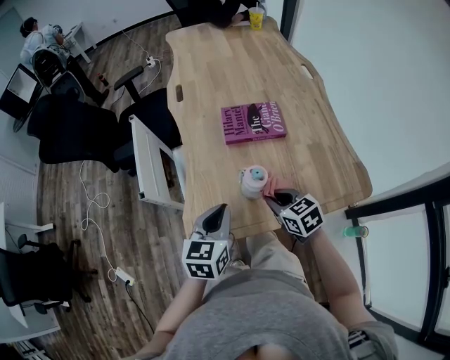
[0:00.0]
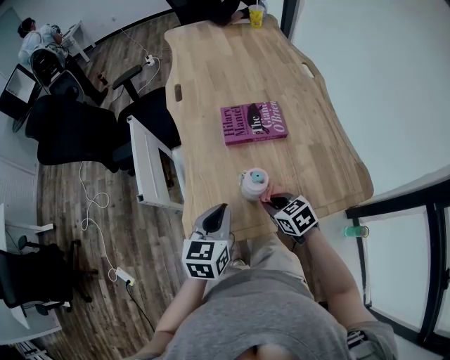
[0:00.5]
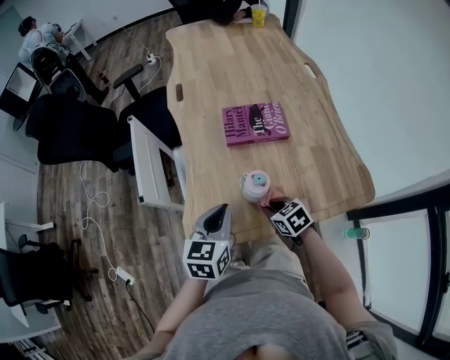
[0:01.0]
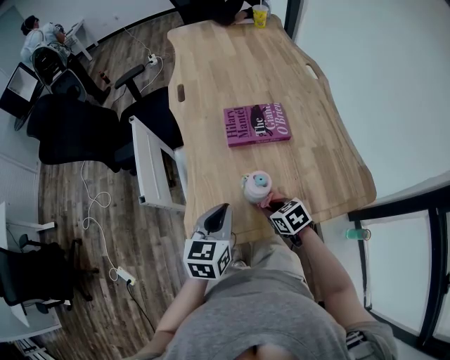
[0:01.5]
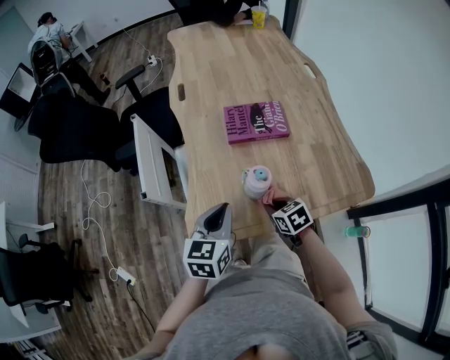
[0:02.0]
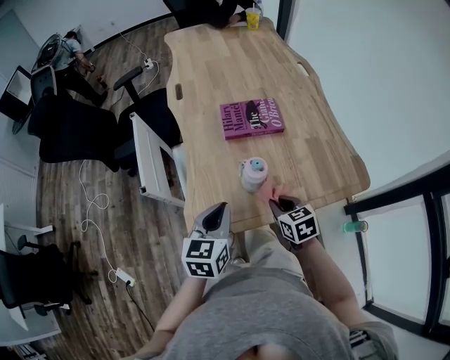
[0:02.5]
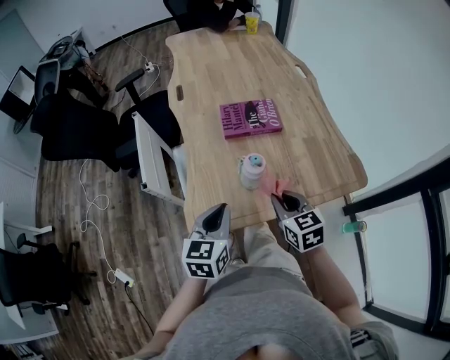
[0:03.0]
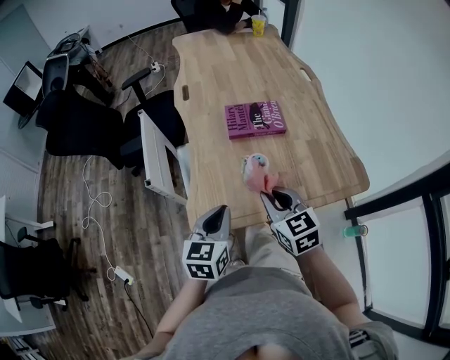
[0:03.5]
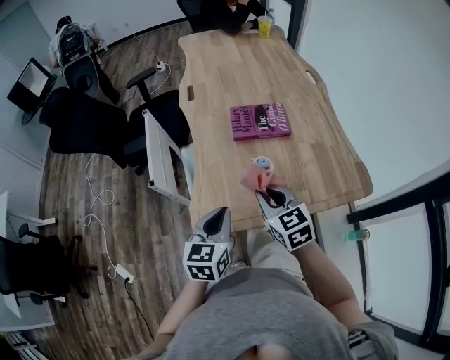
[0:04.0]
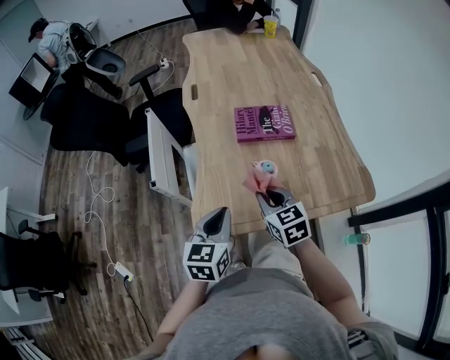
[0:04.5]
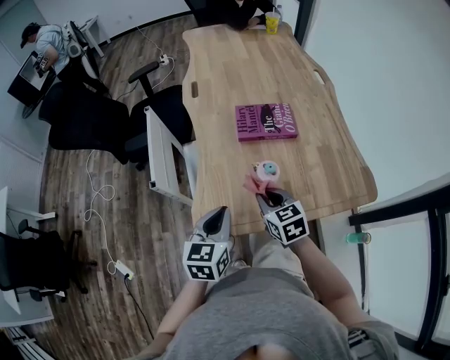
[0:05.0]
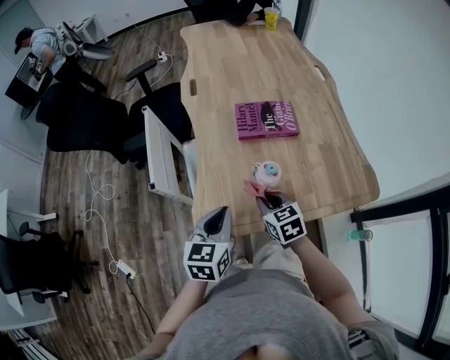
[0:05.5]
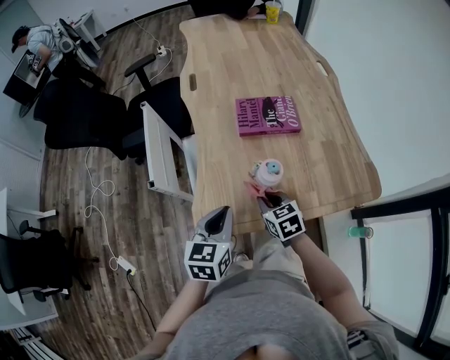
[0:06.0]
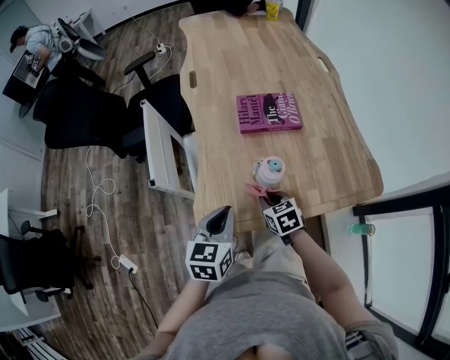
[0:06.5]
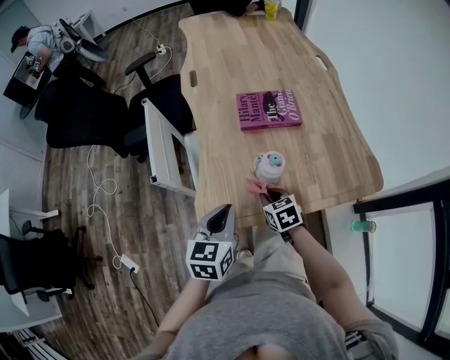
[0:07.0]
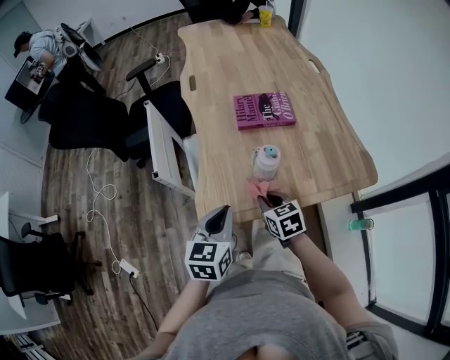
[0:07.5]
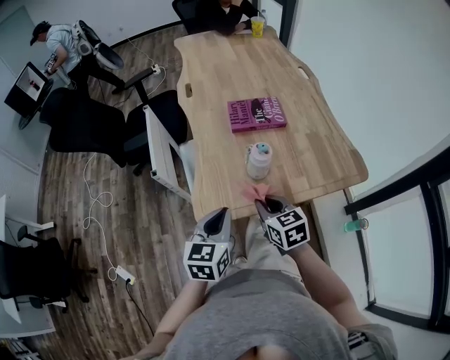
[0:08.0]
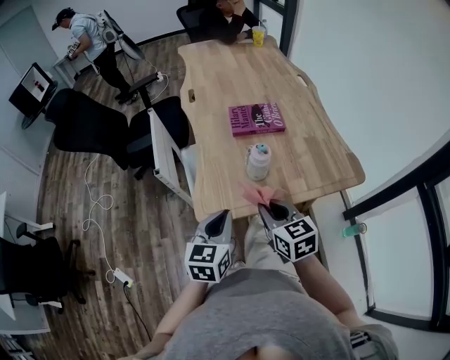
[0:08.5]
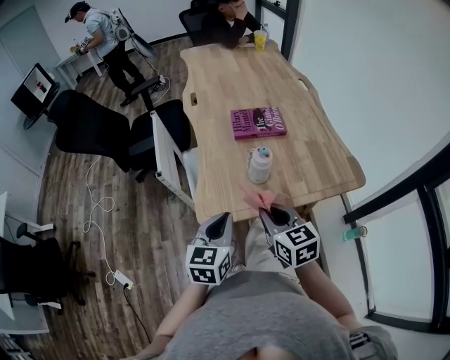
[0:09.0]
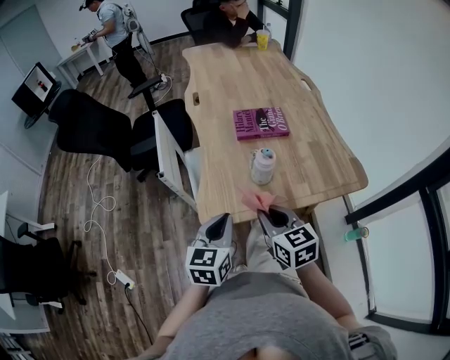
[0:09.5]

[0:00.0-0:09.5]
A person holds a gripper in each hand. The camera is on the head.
0:00.0 to 0:02.0: The right gripper goes roughly 10 cm downward.
0:02.0 to 0:04.0: The left gripper goes some 5 cm backward. Meanwhile the right gripper moves upward, roughly 15 cm, and turns by about 30 degrees.
0:04.0 to 0:05.5: The right gripper moves downward, roughly 10 cm.
0:05.5 to 0:07.5: The right gripper goes roughly 5 cm backward; the left gripper ends up roughly 5 cm from where it was.
0:07.5 to 0:09.5: The right gripper heads upward and backward, covering roughly 15 cm, while the left gripper moves about 5 cm.

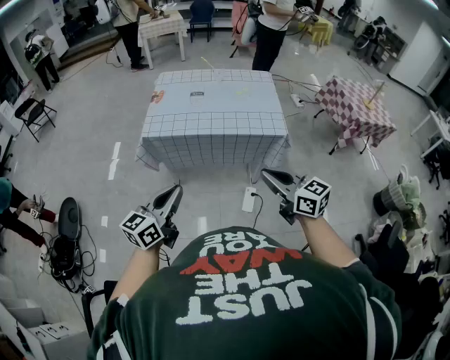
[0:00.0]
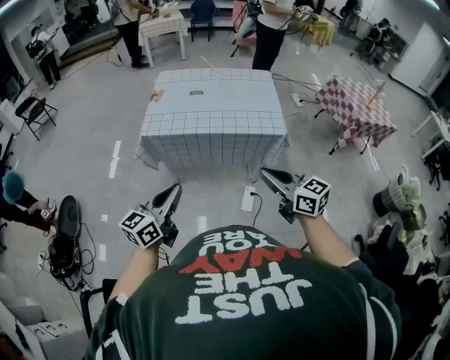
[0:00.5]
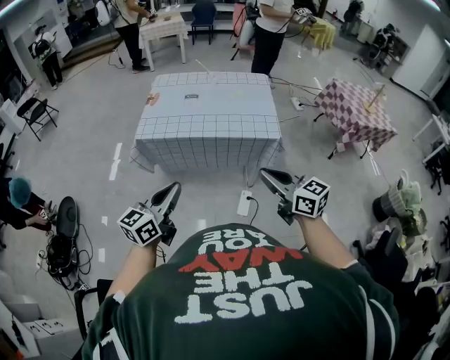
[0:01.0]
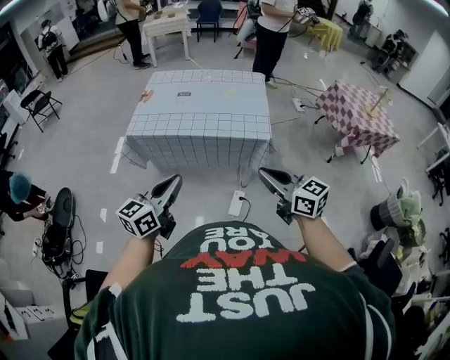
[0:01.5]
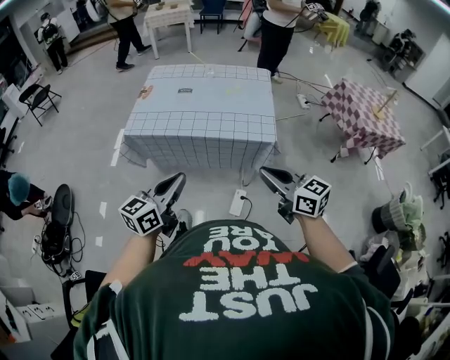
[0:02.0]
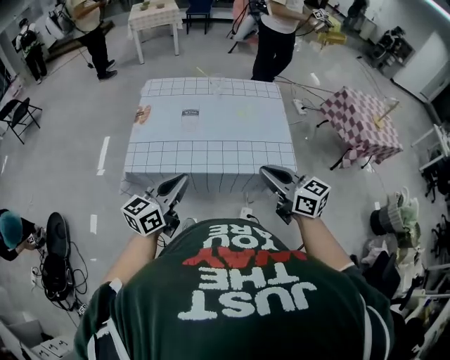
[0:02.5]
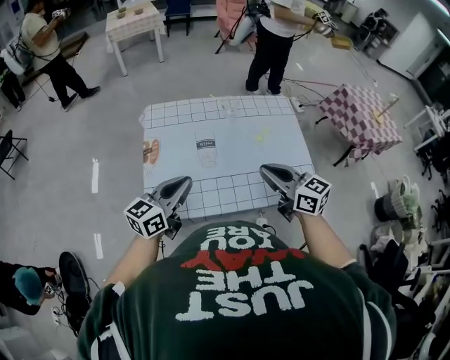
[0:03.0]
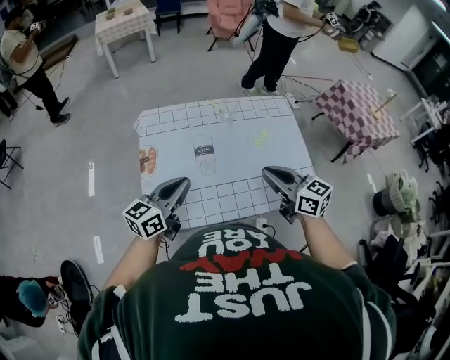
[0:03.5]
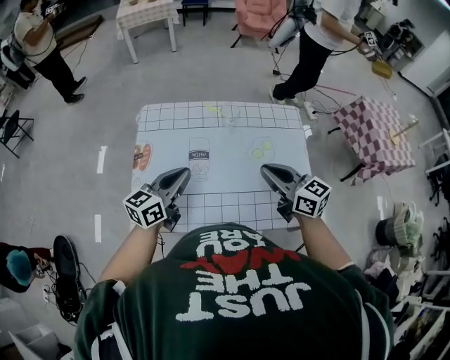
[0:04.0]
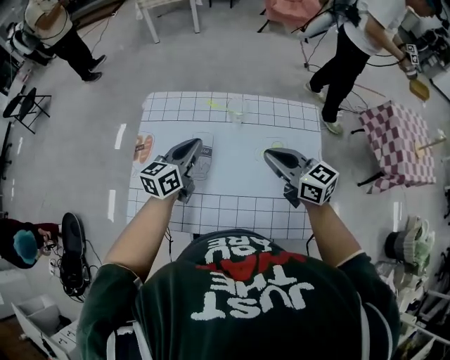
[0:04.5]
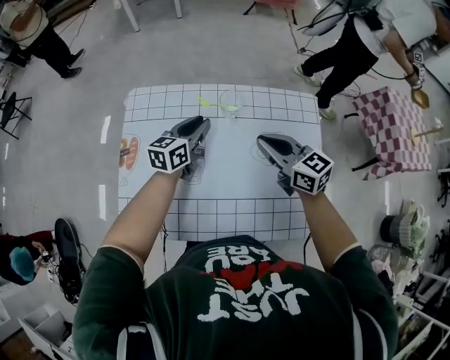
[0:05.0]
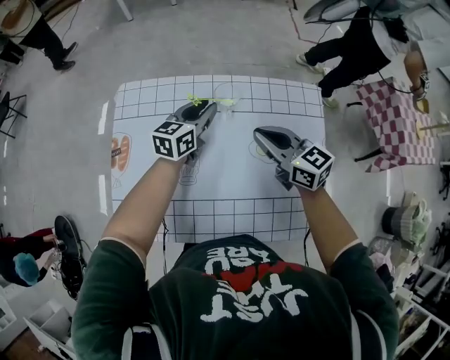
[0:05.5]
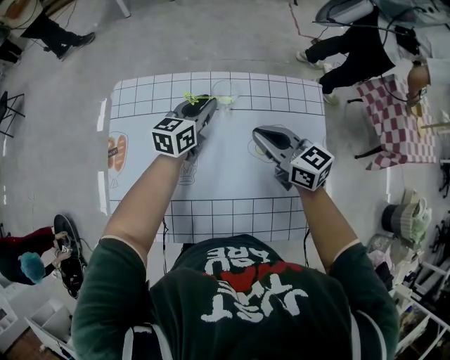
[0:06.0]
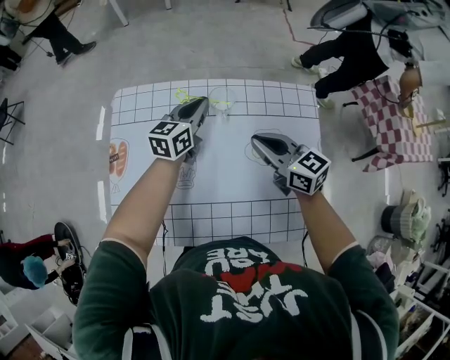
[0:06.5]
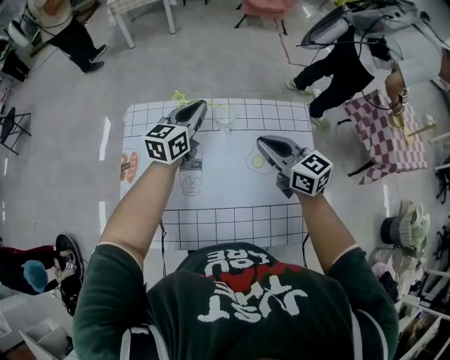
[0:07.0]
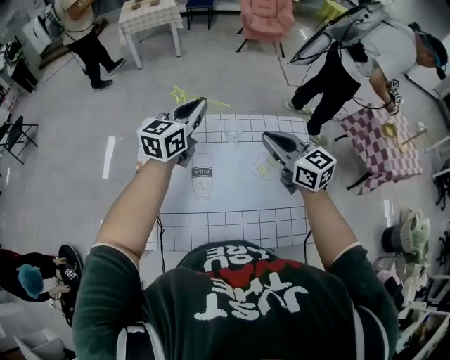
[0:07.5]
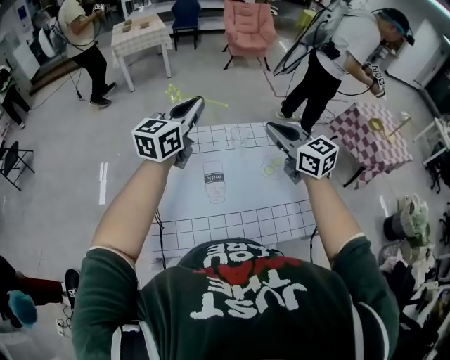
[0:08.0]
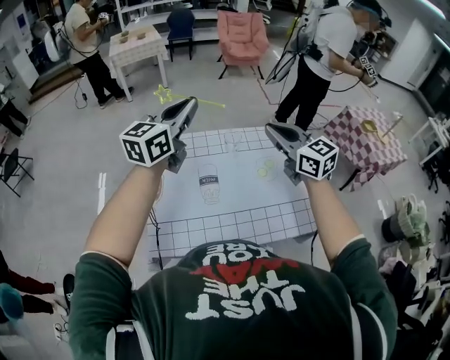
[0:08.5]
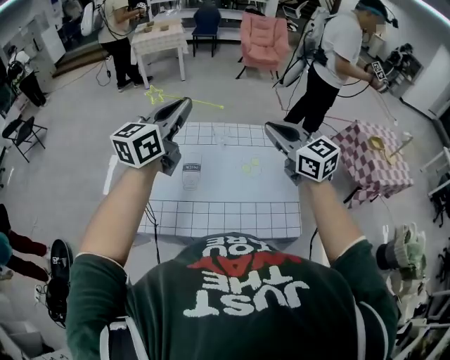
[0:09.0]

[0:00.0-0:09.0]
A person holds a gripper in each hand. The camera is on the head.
0:00.0 to 0:02.0: Both grippers travel together to the right and forward, roughly 15 cm.
0:02.0 to 0:04.5: The pair of grippers is taken forward, some 60 cm.
0:04.5 to 0:07.0: The left gripper is displaced forward and to the right by about 15 cm; the right gripper moves forward, roughly 5 cm.
0:07.0 to 0:09.0: The grippers both shift upward and backward by roughly 25 cm.

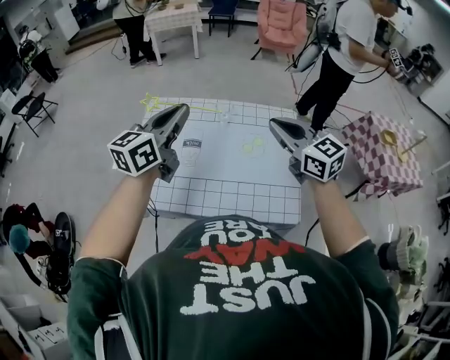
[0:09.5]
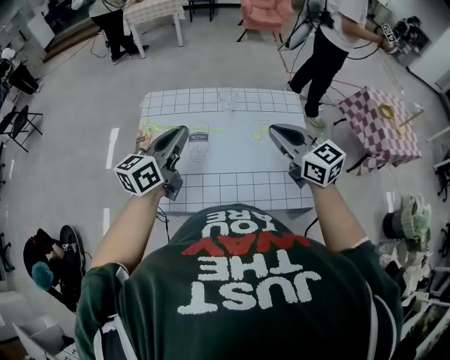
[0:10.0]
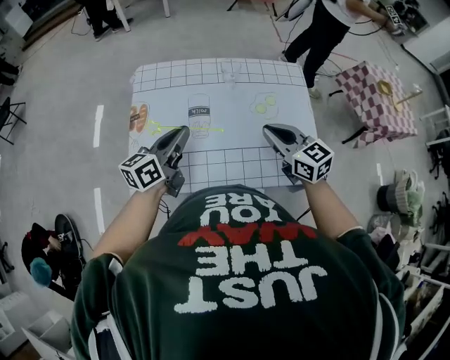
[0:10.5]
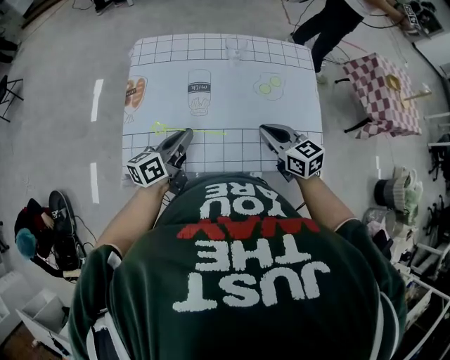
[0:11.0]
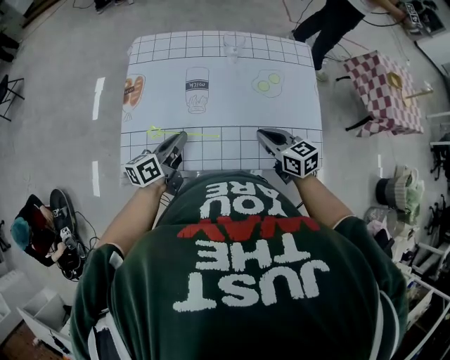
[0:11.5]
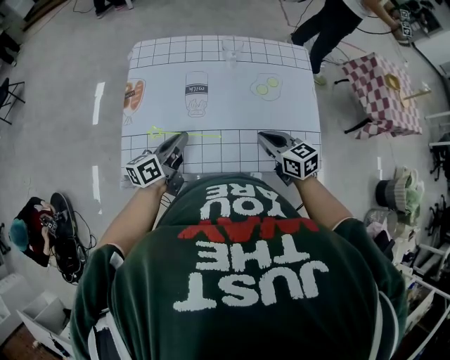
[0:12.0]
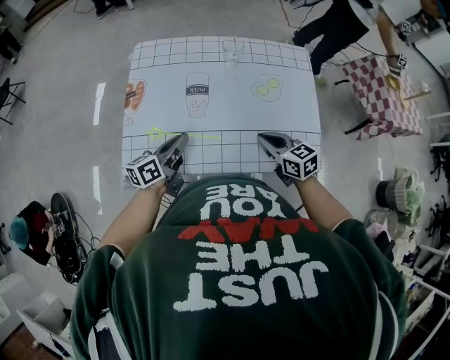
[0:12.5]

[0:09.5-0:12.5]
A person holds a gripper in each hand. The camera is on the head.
0:09.5 to 0:11.0: The grippers both shift downward by roughly 25 cm. The right gripper swivels roughly 20 degrees, while the left gripper rotates about 30 degrees.
0:11.0 to 0:12.5: The grippers stay close to where they were, moving slightly.

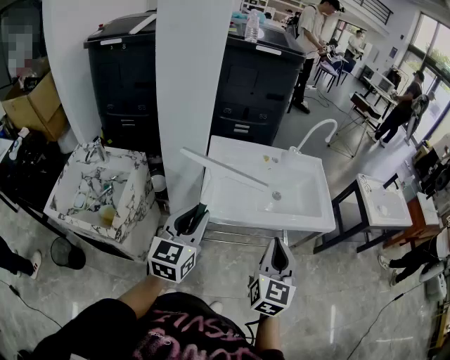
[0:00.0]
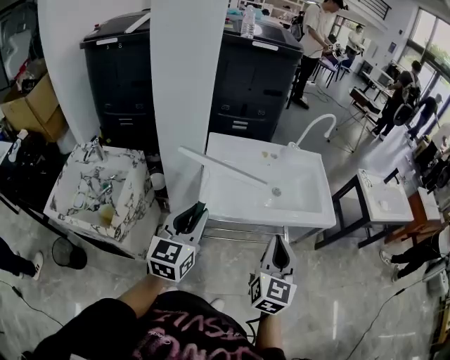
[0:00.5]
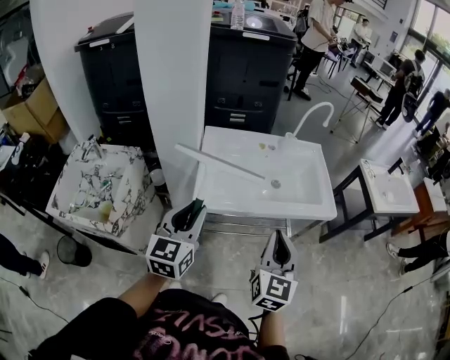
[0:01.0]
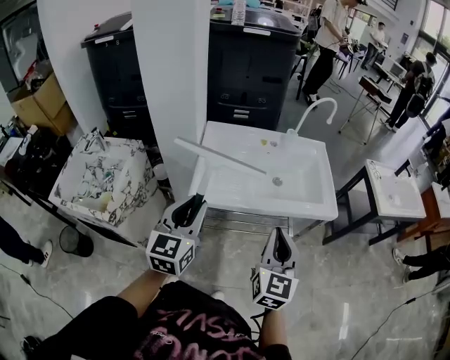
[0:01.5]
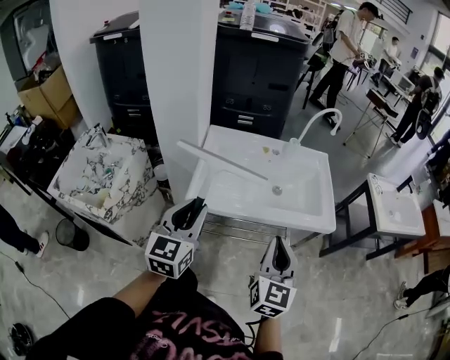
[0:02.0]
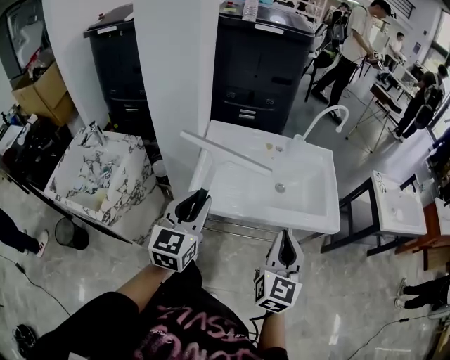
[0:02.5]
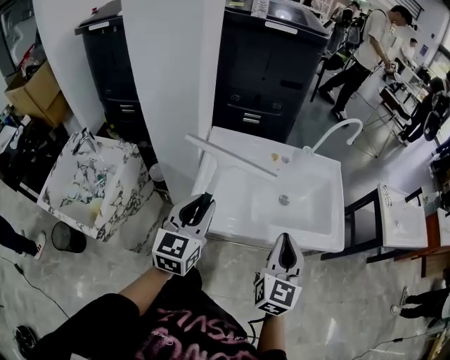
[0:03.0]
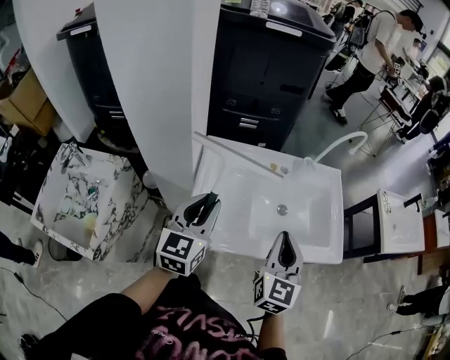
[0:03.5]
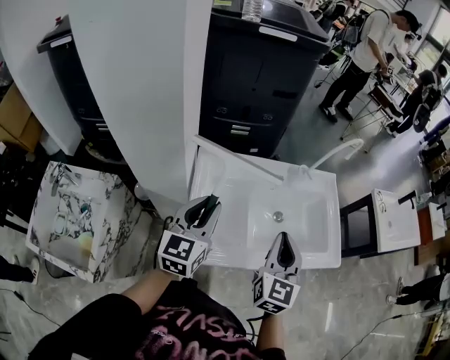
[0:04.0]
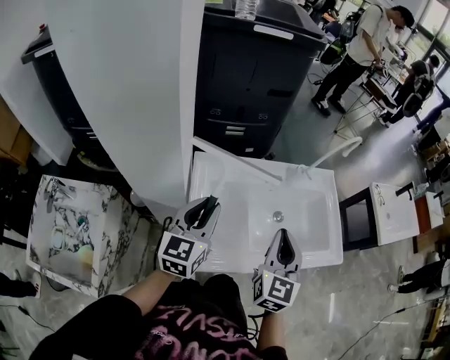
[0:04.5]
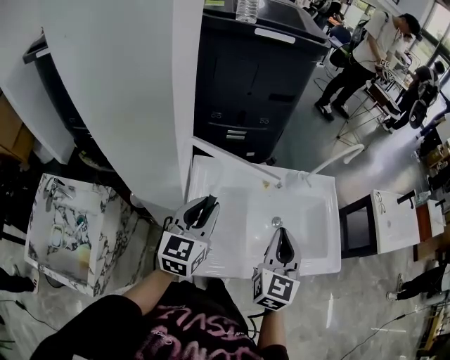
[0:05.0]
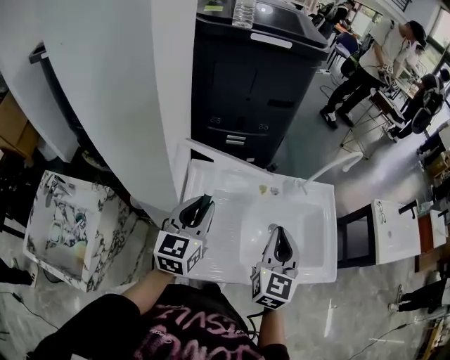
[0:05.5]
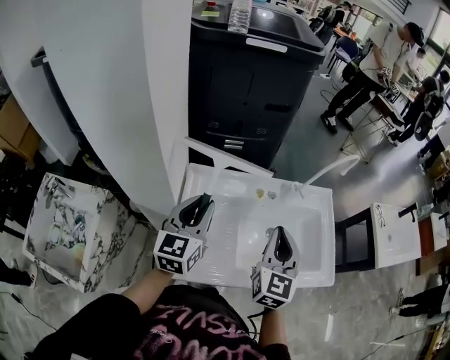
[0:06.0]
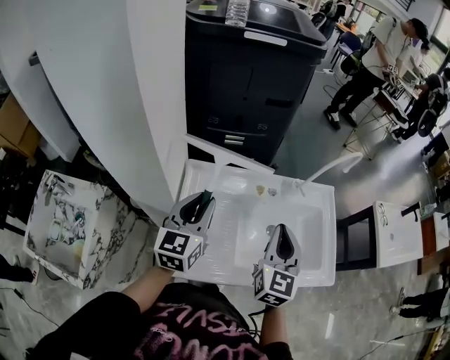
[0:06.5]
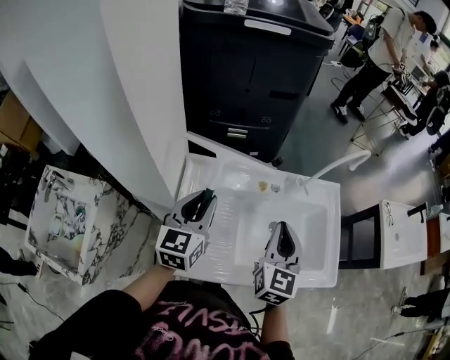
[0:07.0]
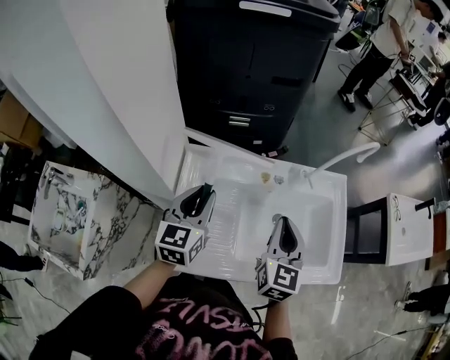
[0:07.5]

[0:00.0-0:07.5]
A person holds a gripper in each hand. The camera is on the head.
0:00.0 to 0:02.0: The grippers both shift to the right by about 10 cm.
0:02.0 to 0:04.0: Both grippers travel together forward, approximately 25 cm.
0:04.0 to 0:05.5: The grippers both shift forward by some 5 cm.
0:05.5 to 0:07.5: The right gripper travels forward by roughly 5 cm. Meanwhile the left gripper ends up roughly 5 cm from where it was.
